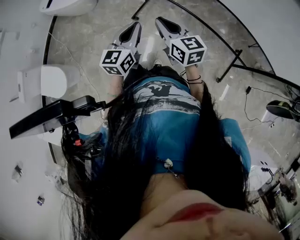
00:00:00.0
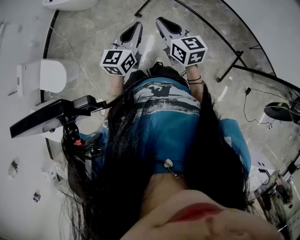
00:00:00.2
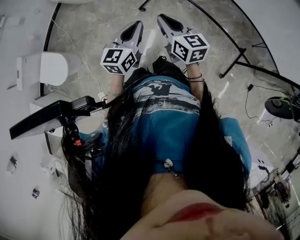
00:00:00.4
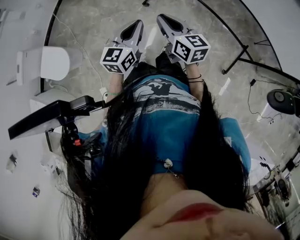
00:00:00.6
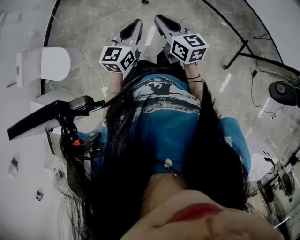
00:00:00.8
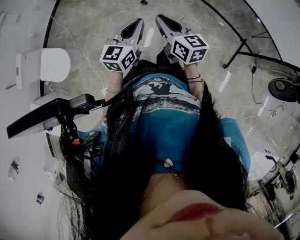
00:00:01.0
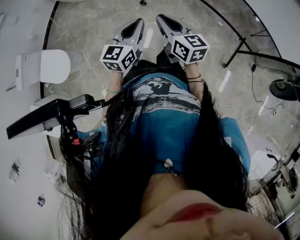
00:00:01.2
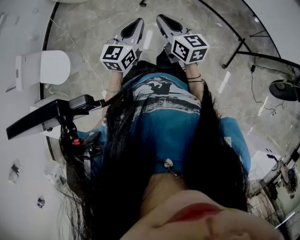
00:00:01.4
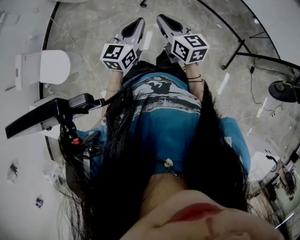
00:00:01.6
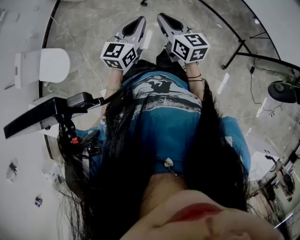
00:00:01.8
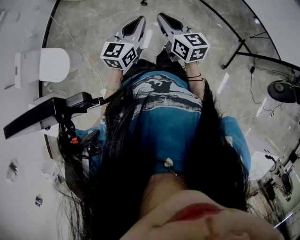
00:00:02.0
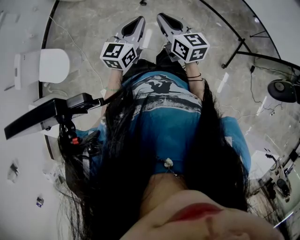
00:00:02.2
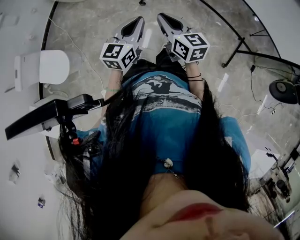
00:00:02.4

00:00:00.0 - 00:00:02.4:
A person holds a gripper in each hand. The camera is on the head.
00:00:00.0 - 00:00:01.2: Both grippers move to the left and backward, some 20 cm.
00:00:01.2 - 00:00:02.4: Neither gripper changes place.

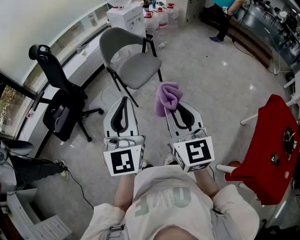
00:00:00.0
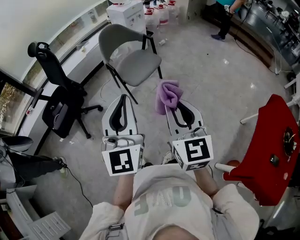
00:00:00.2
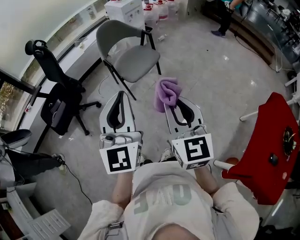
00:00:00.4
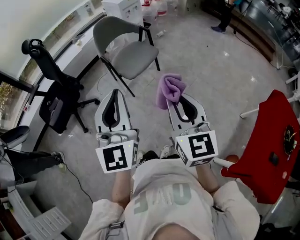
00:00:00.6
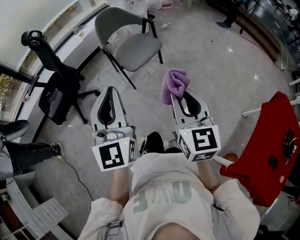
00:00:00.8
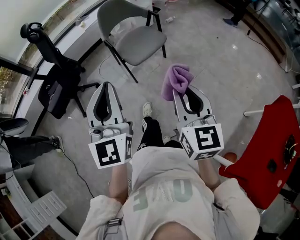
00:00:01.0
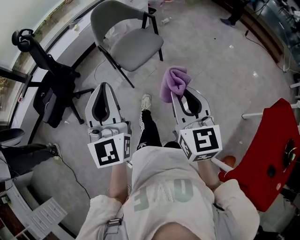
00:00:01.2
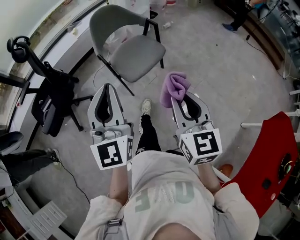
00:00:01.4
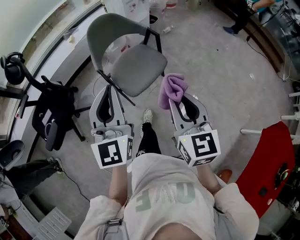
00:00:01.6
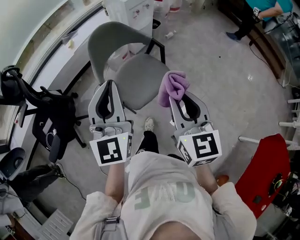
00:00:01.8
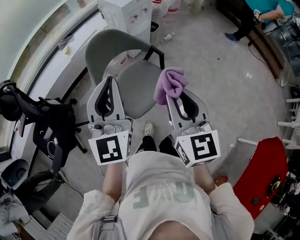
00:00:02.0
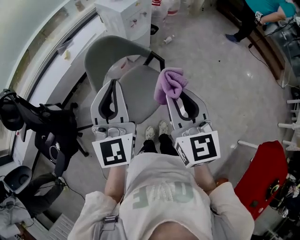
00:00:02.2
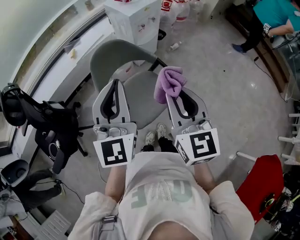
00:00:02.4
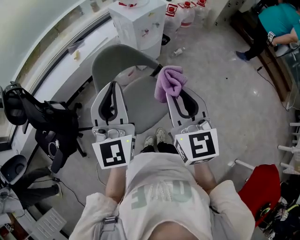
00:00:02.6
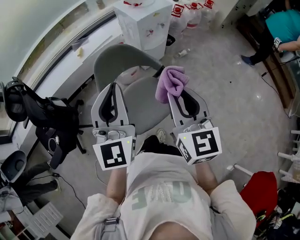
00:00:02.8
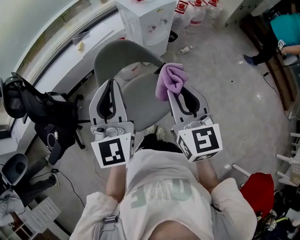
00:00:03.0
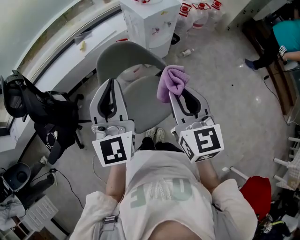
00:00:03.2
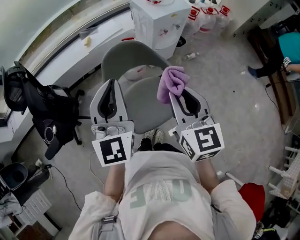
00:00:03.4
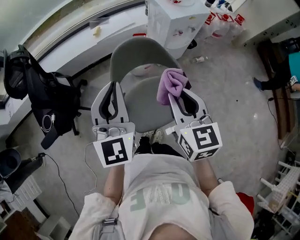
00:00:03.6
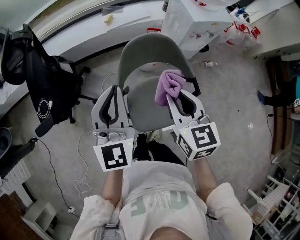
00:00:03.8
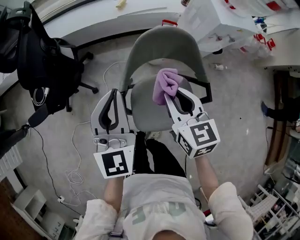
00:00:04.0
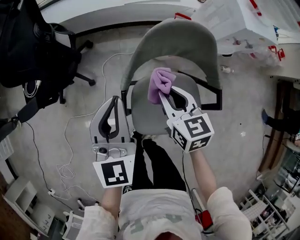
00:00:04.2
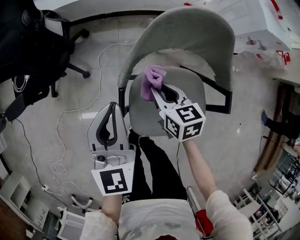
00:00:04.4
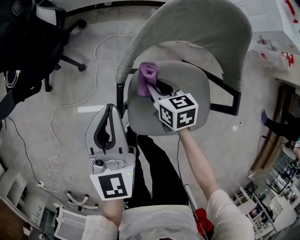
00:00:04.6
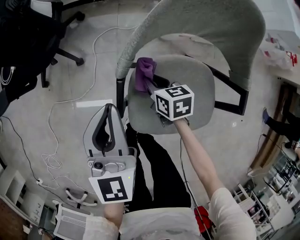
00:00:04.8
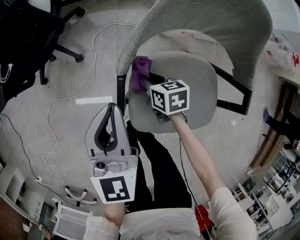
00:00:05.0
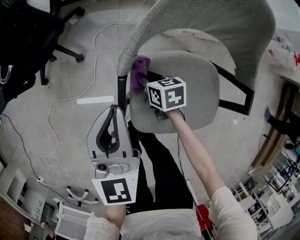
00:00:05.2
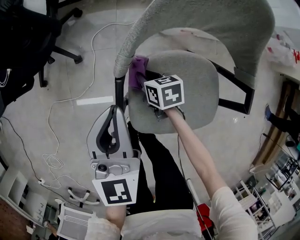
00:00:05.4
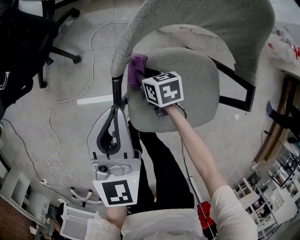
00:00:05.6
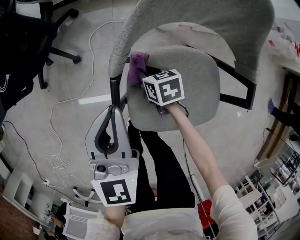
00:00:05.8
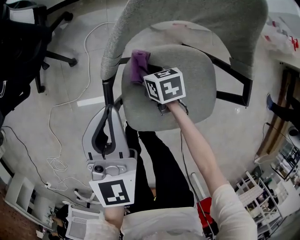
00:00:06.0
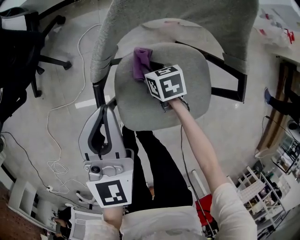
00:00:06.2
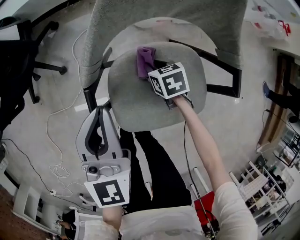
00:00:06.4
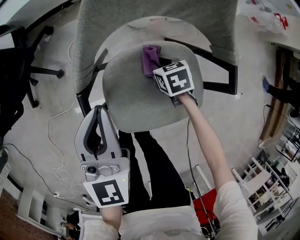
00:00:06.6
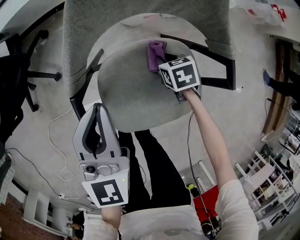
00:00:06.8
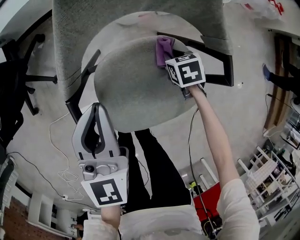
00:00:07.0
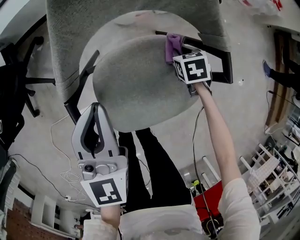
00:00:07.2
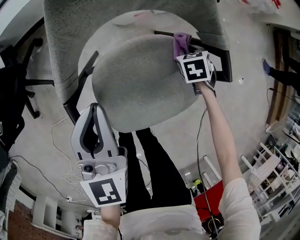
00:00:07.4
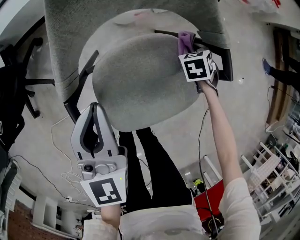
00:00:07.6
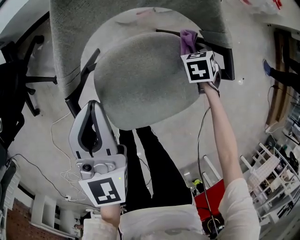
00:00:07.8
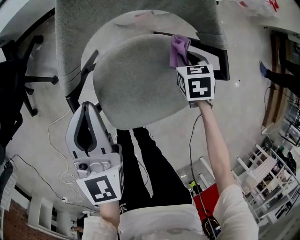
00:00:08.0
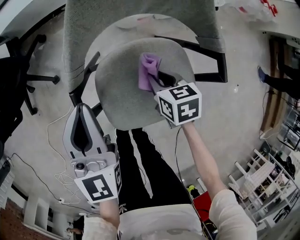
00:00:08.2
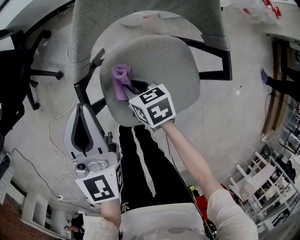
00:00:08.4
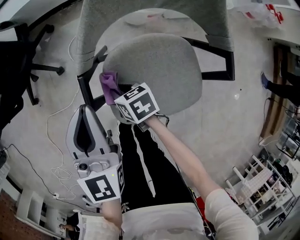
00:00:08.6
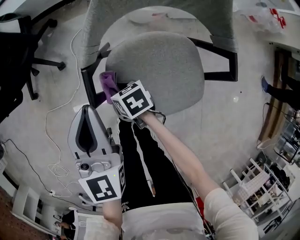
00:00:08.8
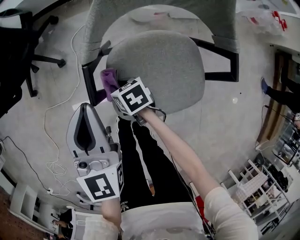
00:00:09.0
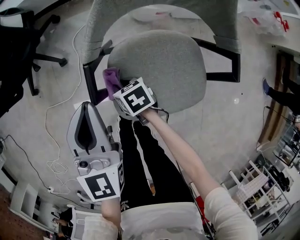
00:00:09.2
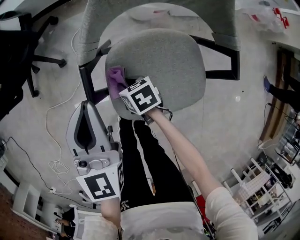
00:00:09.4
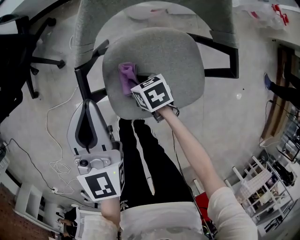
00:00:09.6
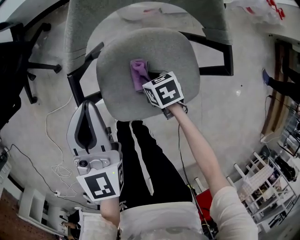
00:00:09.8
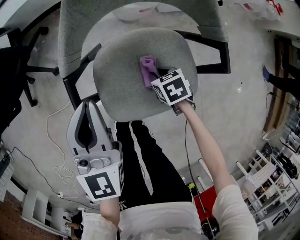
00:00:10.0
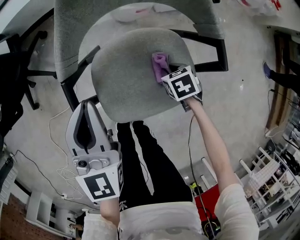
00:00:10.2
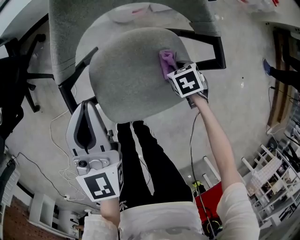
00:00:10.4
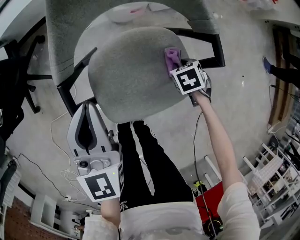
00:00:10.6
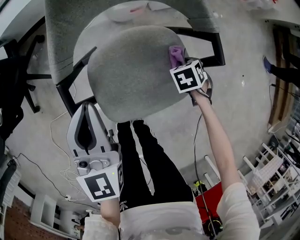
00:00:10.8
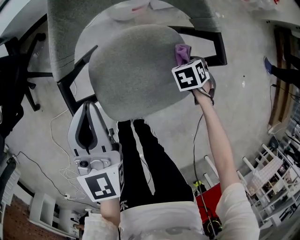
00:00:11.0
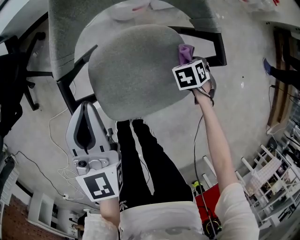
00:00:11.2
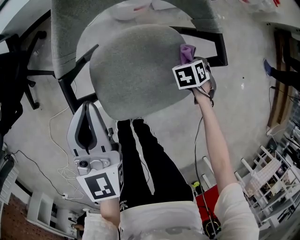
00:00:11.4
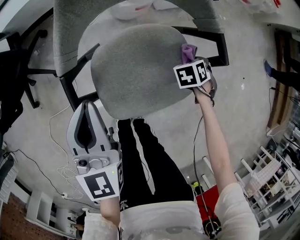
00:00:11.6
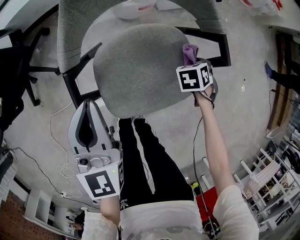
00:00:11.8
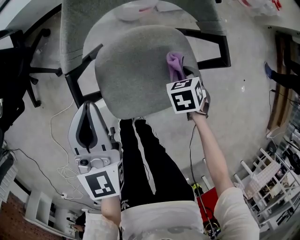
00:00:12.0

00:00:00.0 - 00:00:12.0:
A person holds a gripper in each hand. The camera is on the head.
00:00:00.0 - 00:00:01.6: Both grippers travel together forward, roughly 30 cm.
00:00:01.6 - 00:00:03.0: The two grippers go approximately 30 cm forward.
00:00:03.0 - 00:00:04.4: The grippers both shift downward by about 35 cm. The right gripper turns by approximately 50 degrees. Meanwhile the left gripper changes its angle by approximately 40 degrees.
00:00:04.4 - 00:00:06.0: The left gripper shifts about 10 cm downward, while the right gripper is displaced downward by roughly 20 cm, and rotates some 20 degrees.
00:00:06.0 - 00:00:07.6: The right gripper ends up about 30 cm from where it was, and rotates roughly 40 degrees, while the left gripper changes place by about 10 cm.
00:00:07.6 - 00:00:09.0: The right gripper reaches roughly 5 cm upward, then returns, and swivels some 50 degrees. The left gripper moves approximately 10 cm.
00:00:09.0 - 00:00:10.4: The right gripper changes place by approximately 30 cm, and swivels some 30 degrees. Meanwhile the left gripper ends up roughly 10 cm from where it was.
00:00:10.4 - 00:00:12.0: The right gripper ends up roughly 5 cm from where it was.

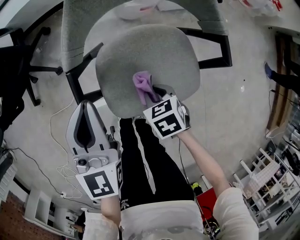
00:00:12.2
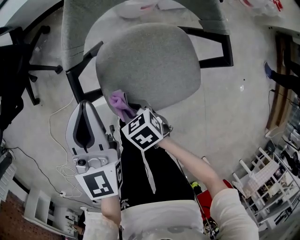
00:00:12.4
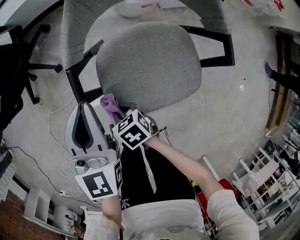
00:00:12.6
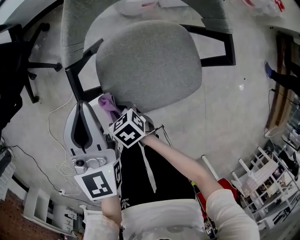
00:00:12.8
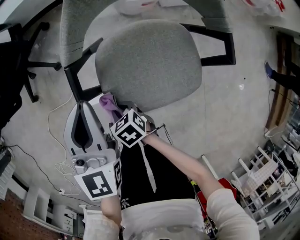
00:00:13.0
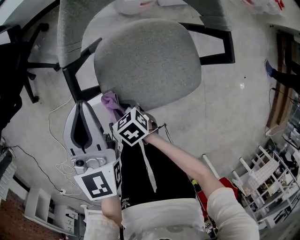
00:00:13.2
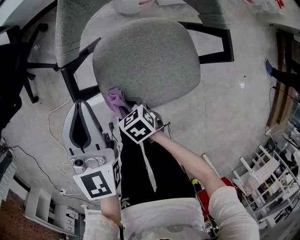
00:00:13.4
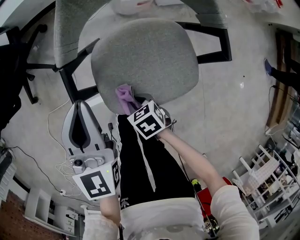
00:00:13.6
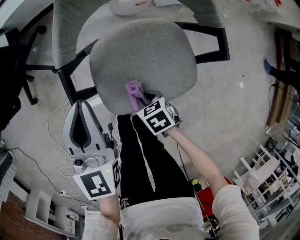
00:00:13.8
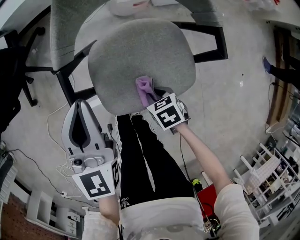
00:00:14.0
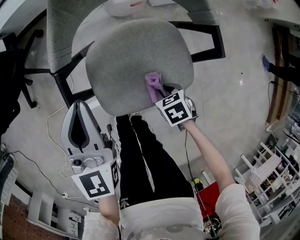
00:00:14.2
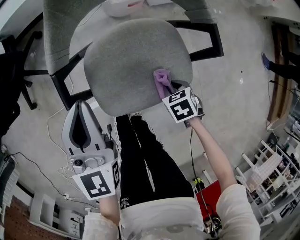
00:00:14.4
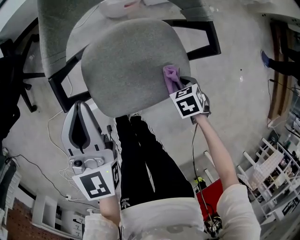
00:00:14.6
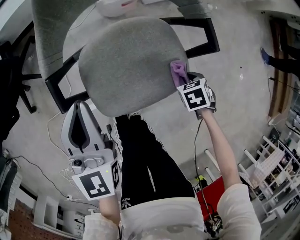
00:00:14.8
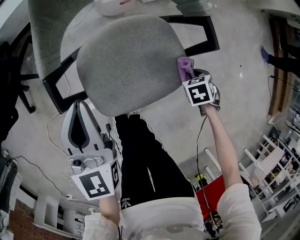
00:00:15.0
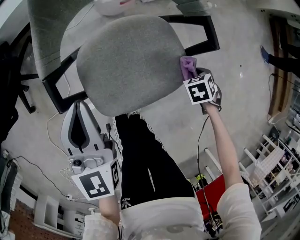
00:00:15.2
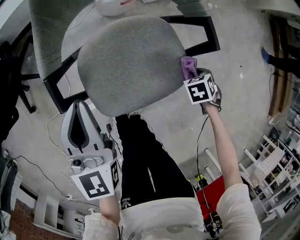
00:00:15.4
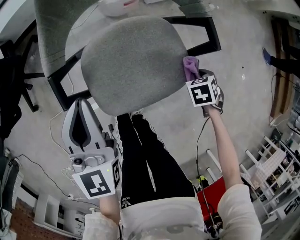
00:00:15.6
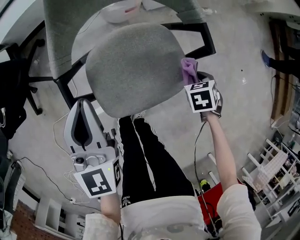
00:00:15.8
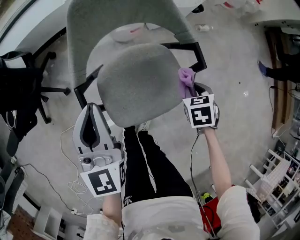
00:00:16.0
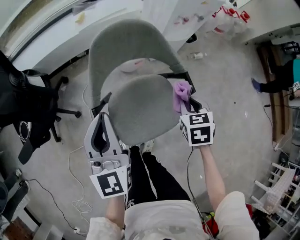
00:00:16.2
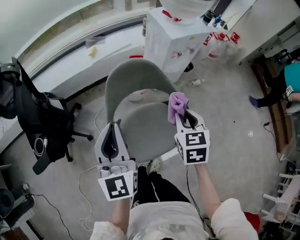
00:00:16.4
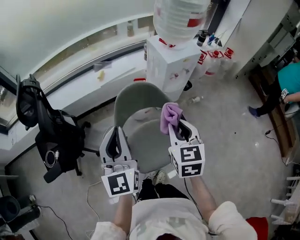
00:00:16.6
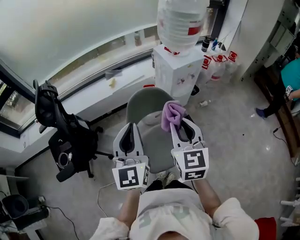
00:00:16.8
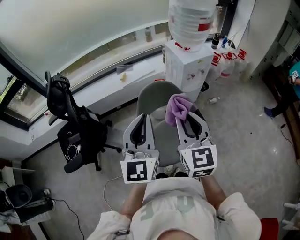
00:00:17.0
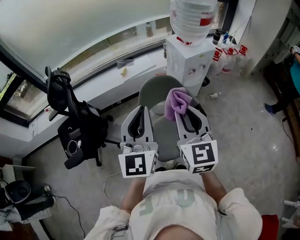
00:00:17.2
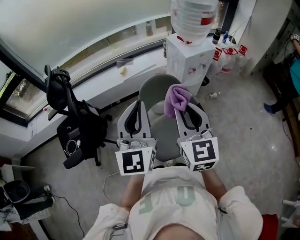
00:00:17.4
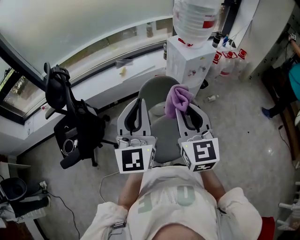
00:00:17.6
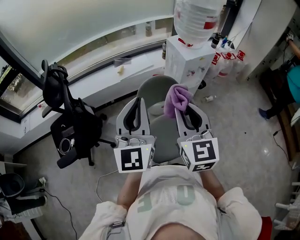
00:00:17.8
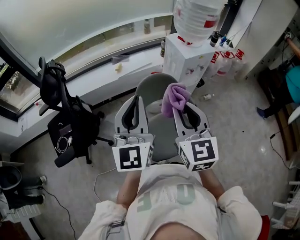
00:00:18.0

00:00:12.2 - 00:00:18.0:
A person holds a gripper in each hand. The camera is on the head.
00:00:12.2 - 00:00:13.6: The right gripper heads to the left and downward, covering approximately 10 cm.
00:00:13.6 - 00:00:15.0: The right gripper moves some 30 cm, and changes its angle by roughly 30 degrees.
00:00:15.0 - 00:00:16.6: The right gripper moves upward, some 50 cm, and points its fingers some 50 degrees further upward. Meanwhile the left gripper heads upward, covering some 35 cm, and turns by roughly 20 degrees.
00:00:16.6 - 00:00:18.0: The right gripper is displaced upward and to the left by roughly 15 cm, and rotates approximately 20 degrees; the left gripper travels upward by roughly 10 cm.

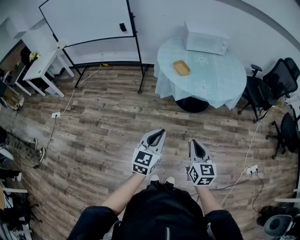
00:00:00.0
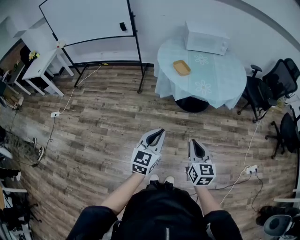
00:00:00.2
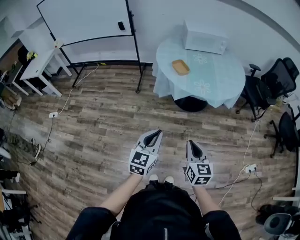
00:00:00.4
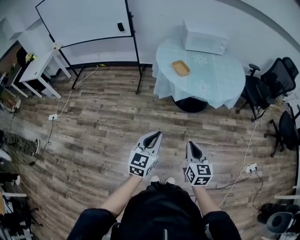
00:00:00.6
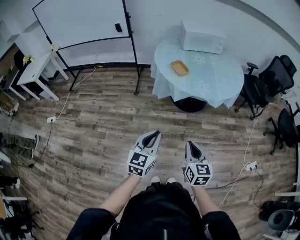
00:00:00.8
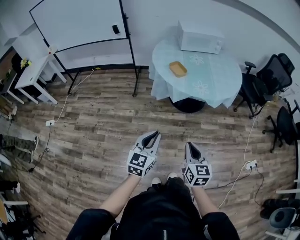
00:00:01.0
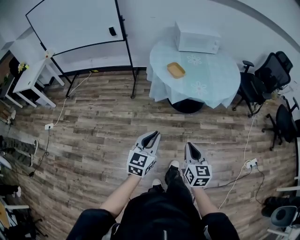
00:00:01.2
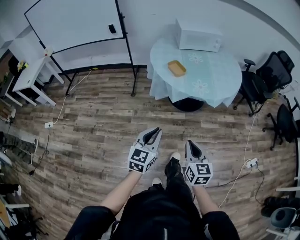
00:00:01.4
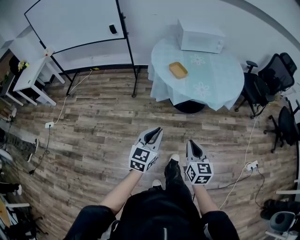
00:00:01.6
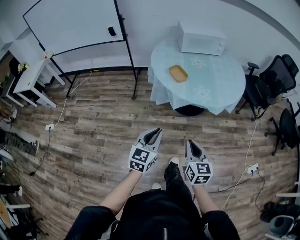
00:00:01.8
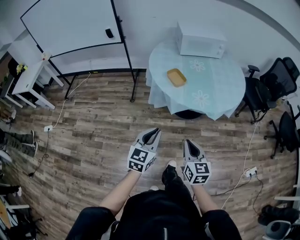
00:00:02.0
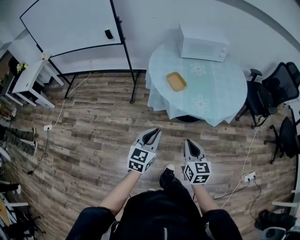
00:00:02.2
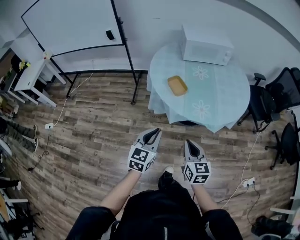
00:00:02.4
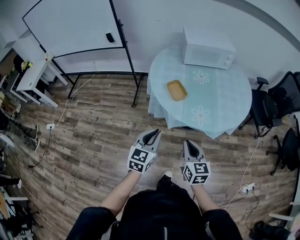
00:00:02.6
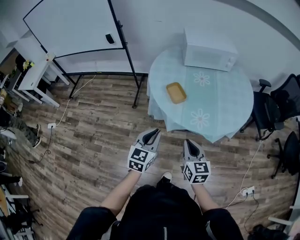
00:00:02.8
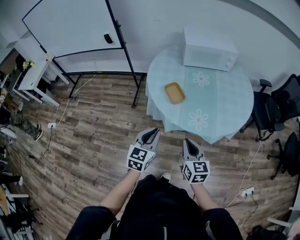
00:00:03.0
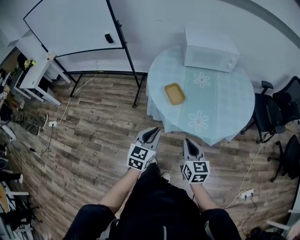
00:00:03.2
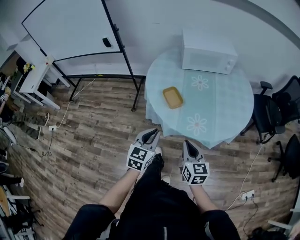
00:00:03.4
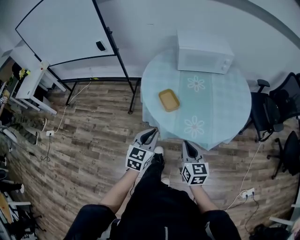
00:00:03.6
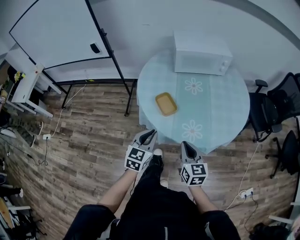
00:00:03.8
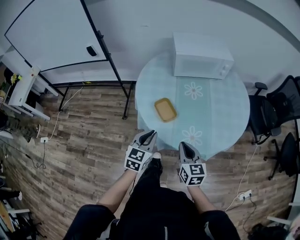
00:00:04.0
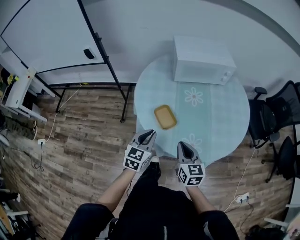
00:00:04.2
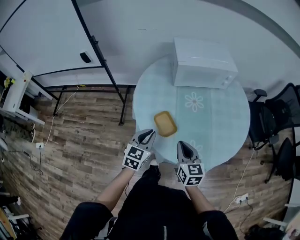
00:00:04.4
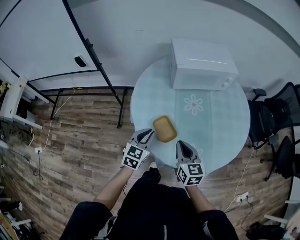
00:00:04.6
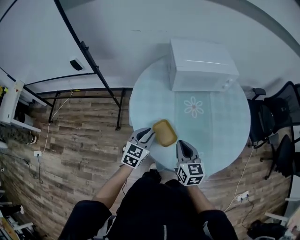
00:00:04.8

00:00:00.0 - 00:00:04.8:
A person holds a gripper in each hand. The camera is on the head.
00:00:00.0 - 00:00:01.6: Both grippers travel together forward, approximately 5 cm.
00:00:01.6 - 00:00:03.2: Both grippers move forward, about 25 cm.
00:00:03.2 - 00:00:04.8: Both grippers travel together forward, about 30 cm.
